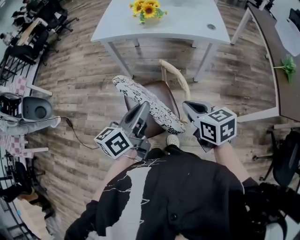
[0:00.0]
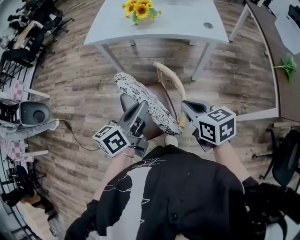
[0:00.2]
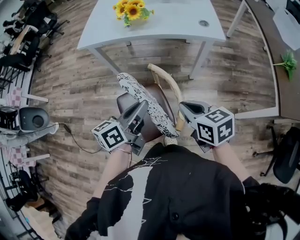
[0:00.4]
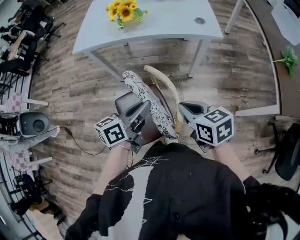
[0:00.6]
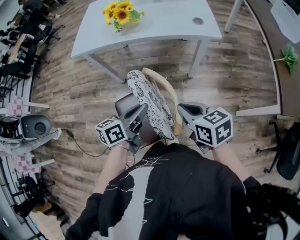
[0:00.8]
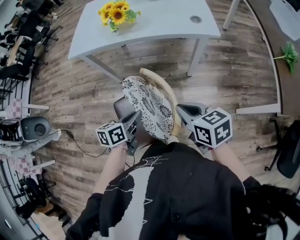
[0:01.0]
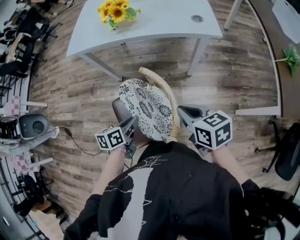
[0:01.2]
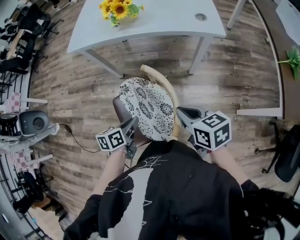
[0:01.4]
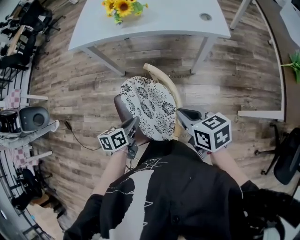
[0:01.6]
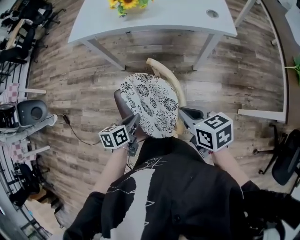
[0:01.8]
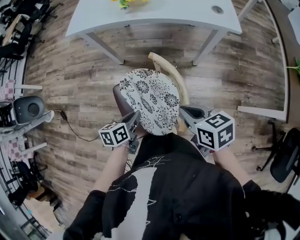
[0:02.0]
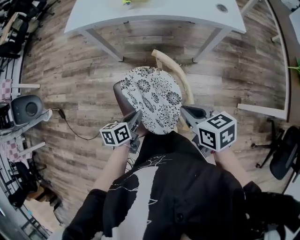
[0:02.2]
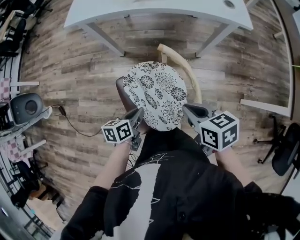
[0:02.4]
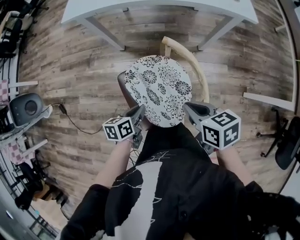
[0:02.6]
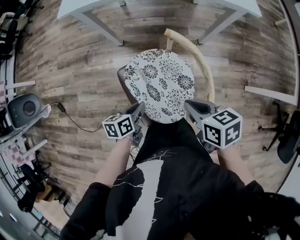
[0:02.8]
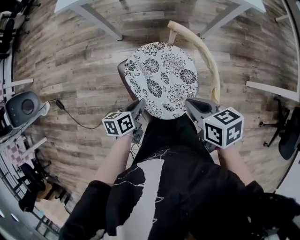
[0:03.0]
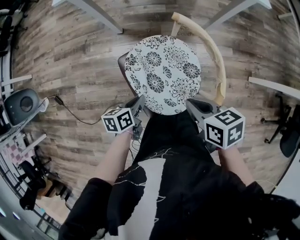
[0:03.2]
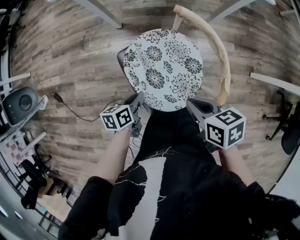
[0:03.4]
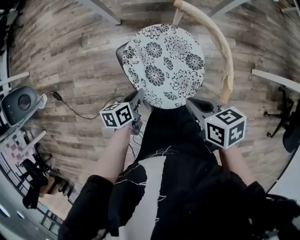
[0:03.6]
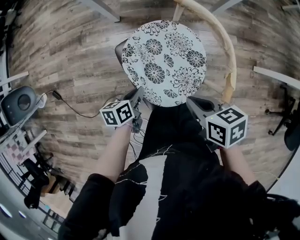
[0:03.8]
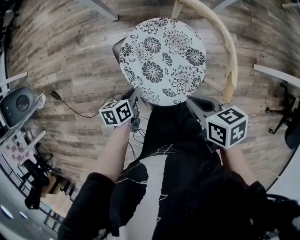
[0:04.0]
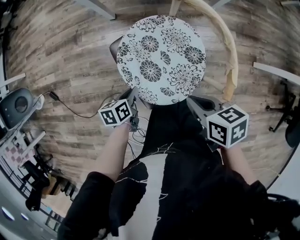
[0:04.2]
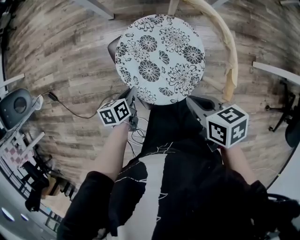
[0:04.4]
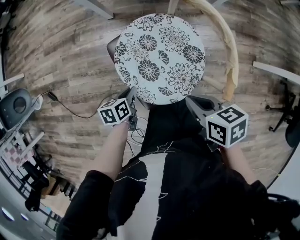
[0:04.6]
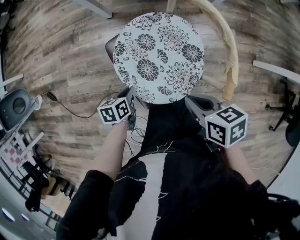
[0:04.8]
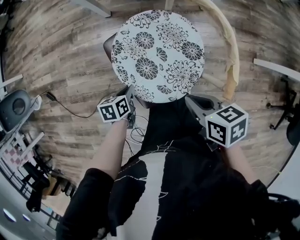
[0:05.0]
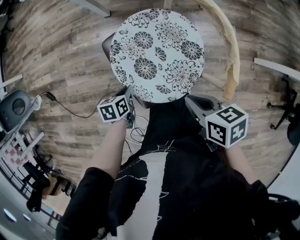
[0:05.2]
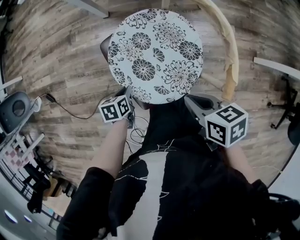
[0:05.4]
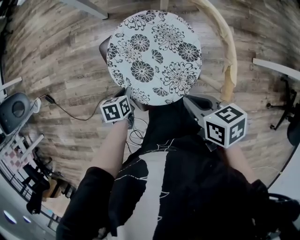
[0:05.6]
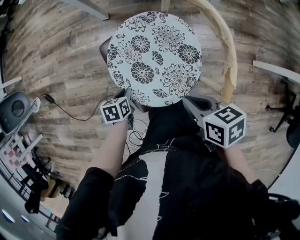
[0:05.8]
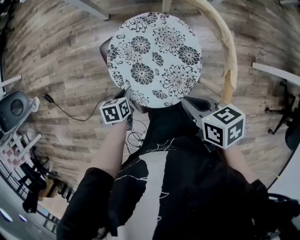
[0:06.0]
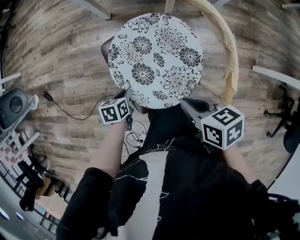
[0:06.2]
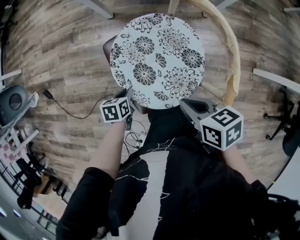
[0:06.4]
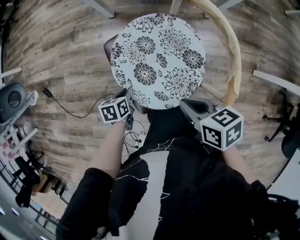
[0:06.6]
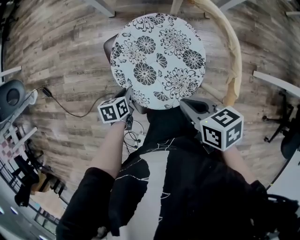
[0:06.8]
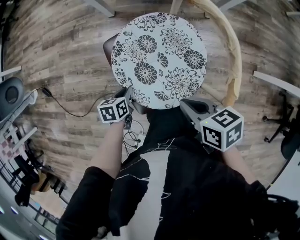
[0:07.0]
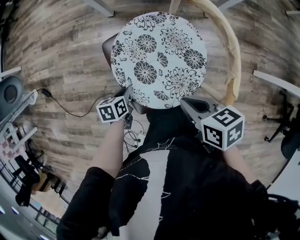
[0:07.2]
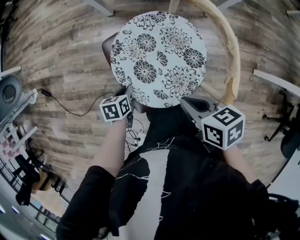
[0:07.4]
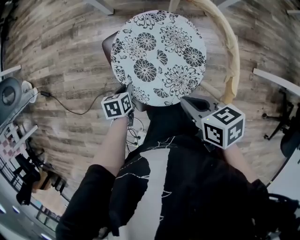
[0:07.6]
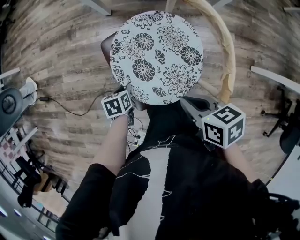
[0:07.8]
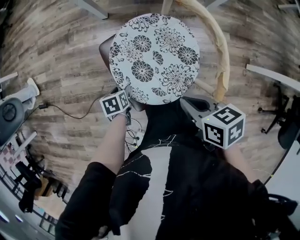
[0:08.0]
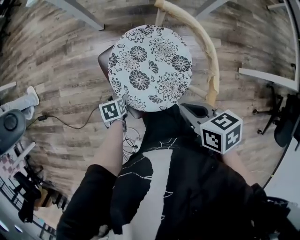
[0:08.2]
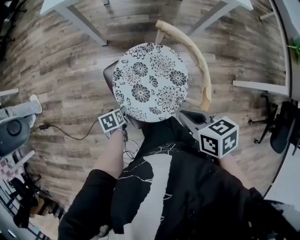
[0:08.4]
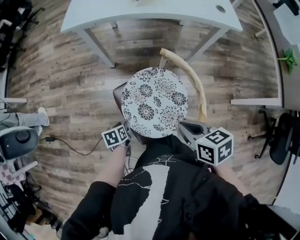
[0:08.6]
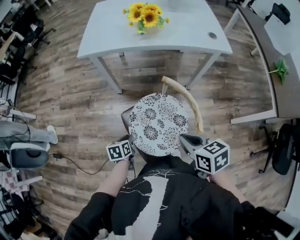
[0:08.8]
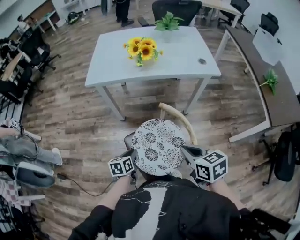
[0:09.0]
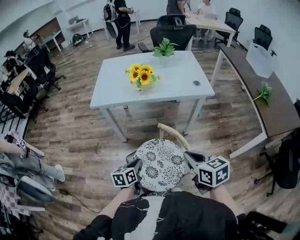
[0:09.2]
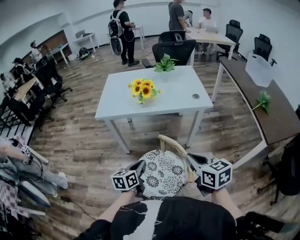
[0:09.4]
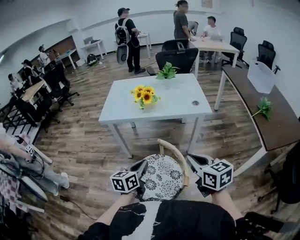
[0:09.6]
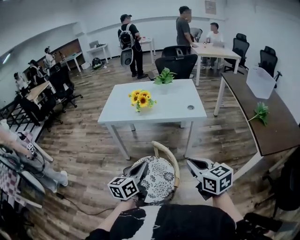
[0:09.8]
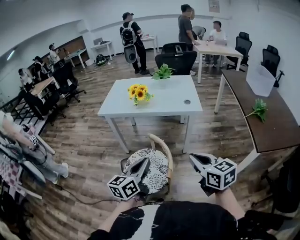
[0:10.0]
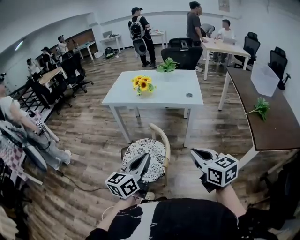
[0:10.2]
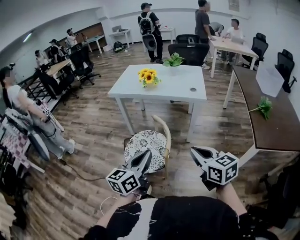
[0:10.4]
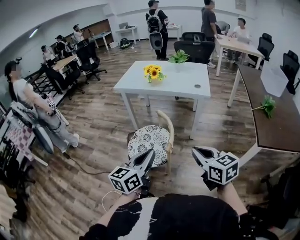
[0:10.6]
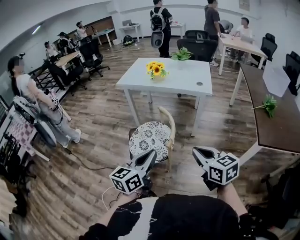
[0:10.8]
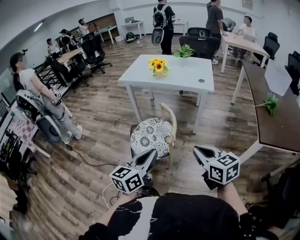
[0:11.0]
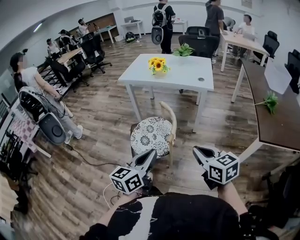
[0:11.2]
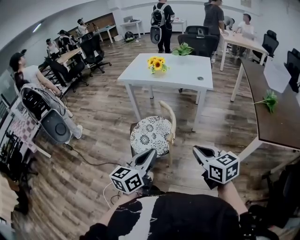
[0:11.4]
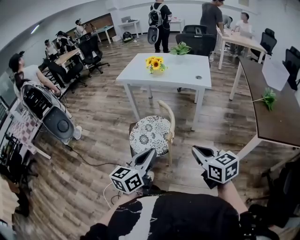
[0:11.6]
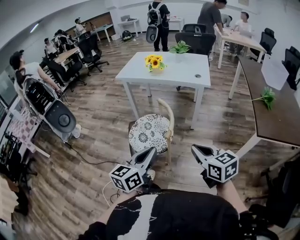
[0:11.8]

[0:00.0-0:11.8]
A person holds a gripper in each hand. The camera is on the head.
0:00.0 to 0:01.4: The left gripper is displaced downward by some 20 cm, and rotates approximately 30 degrees, while the right gripper is displaced forward, downward and to the right by approximately 10 cm.
0:01.4 to 0:03.0: The left gripper heads downward and to the left, covering about 15 cm; the right gripper shifts about 15 cm to the left and downward.
0:03.0 to 0:04.4: The right gripper shifts approximately 10 cm downward and backward. Meanwhile the left gripper heads downward, covering some 10 cm.
0:04.4 to 0:06.0: The left gripper moves downward, approximately 5 cm.
0:06.0 to 0:07.4: The grippers move only a little.
0:07.4 to 0:08.8: The grippers both shift upward by some 20 cm. The left gripper opens, then closes once more.
0:08.8 to 0:10.4: The left gripper travels upward, to the right and backward by about 50 cm, and tips its fingers upward by approximately 50 degrees; the right gripper travels to the right, upward and backward by approximately 35 cm, and changes its angle by roughly 30 degrees.
0:10.4 to 0:11.8: The grippers both shift backward by roughly 10 cm.

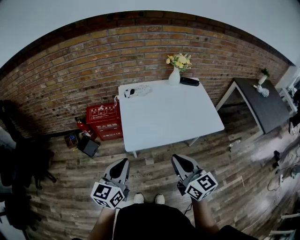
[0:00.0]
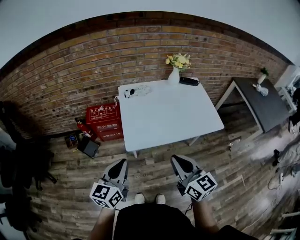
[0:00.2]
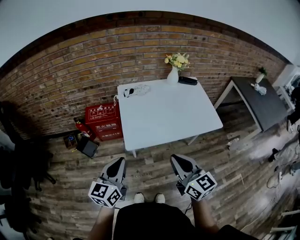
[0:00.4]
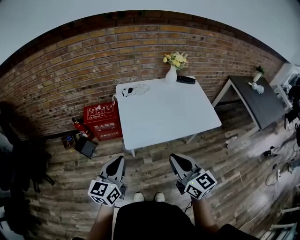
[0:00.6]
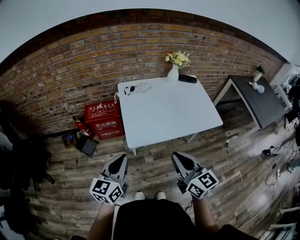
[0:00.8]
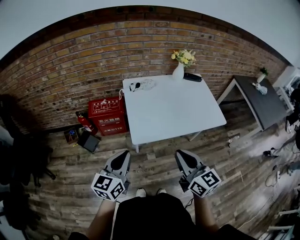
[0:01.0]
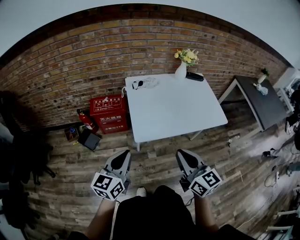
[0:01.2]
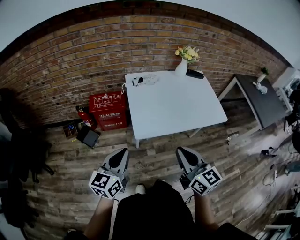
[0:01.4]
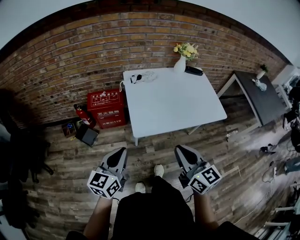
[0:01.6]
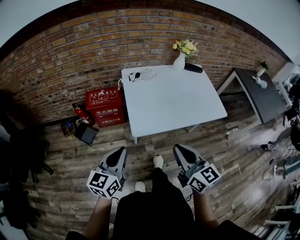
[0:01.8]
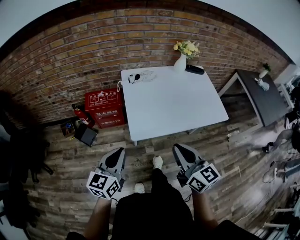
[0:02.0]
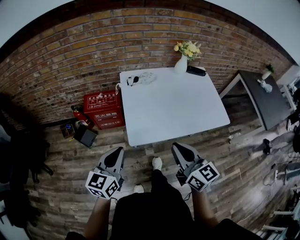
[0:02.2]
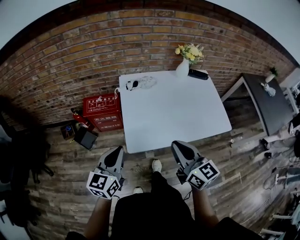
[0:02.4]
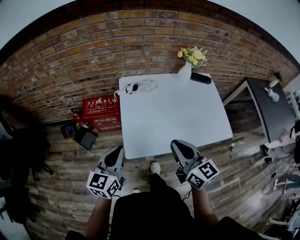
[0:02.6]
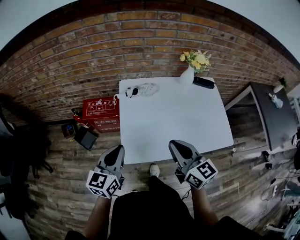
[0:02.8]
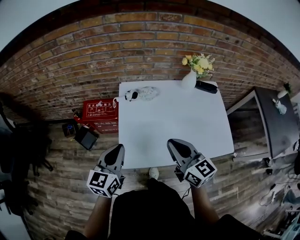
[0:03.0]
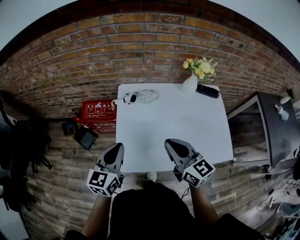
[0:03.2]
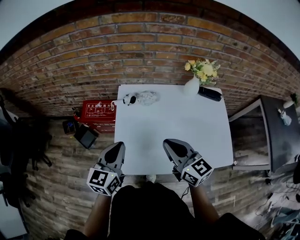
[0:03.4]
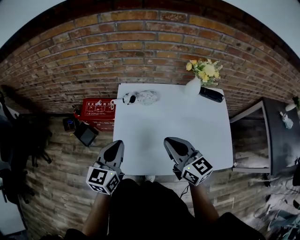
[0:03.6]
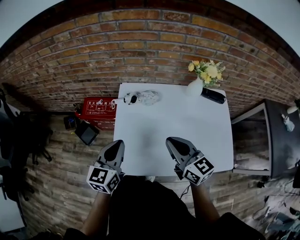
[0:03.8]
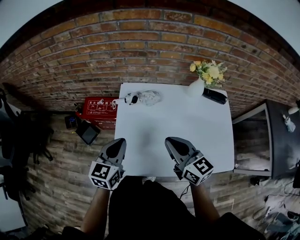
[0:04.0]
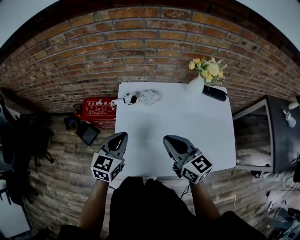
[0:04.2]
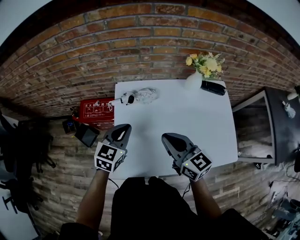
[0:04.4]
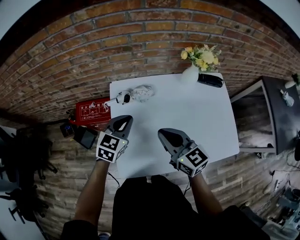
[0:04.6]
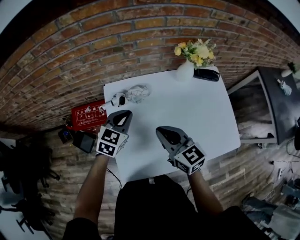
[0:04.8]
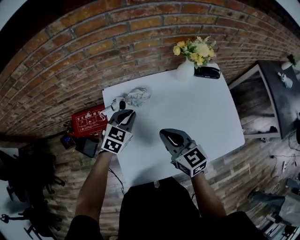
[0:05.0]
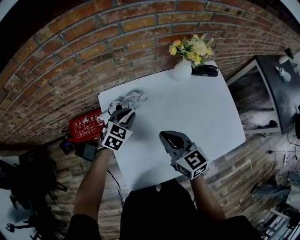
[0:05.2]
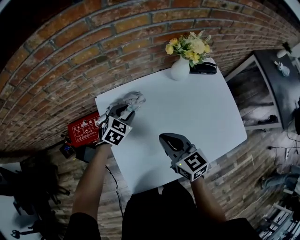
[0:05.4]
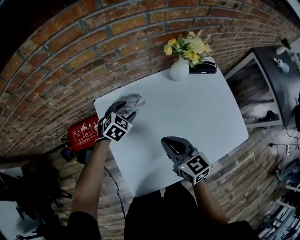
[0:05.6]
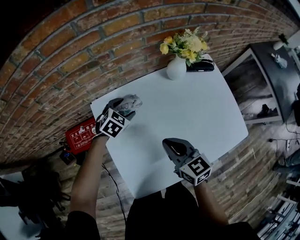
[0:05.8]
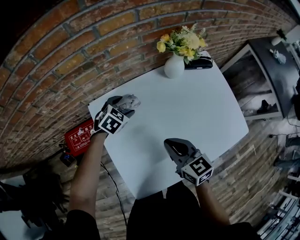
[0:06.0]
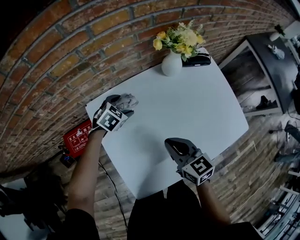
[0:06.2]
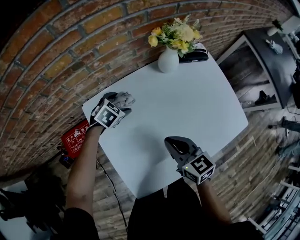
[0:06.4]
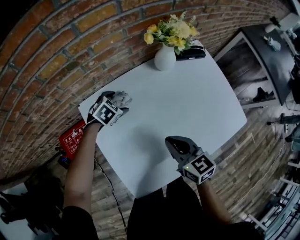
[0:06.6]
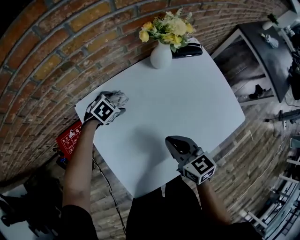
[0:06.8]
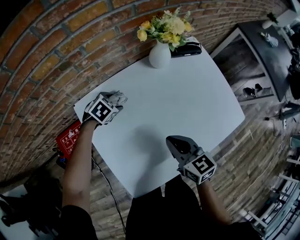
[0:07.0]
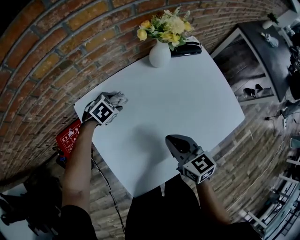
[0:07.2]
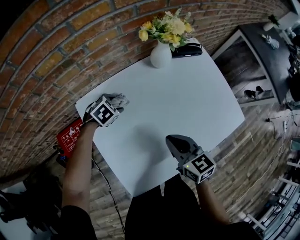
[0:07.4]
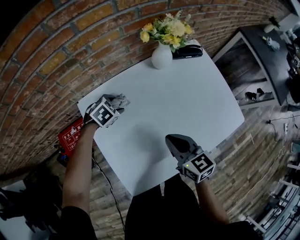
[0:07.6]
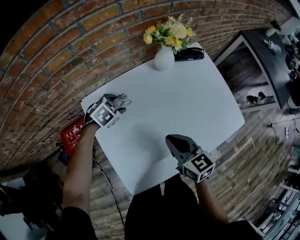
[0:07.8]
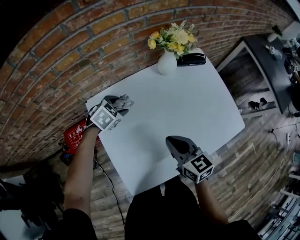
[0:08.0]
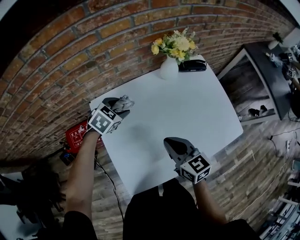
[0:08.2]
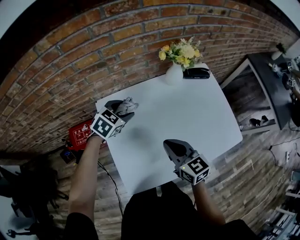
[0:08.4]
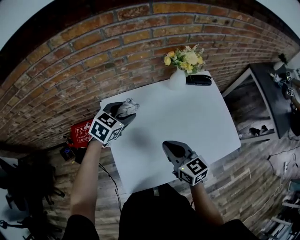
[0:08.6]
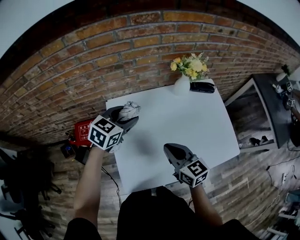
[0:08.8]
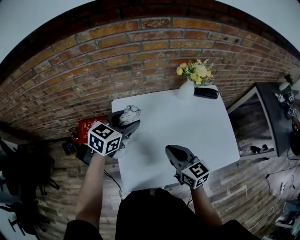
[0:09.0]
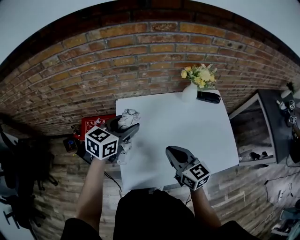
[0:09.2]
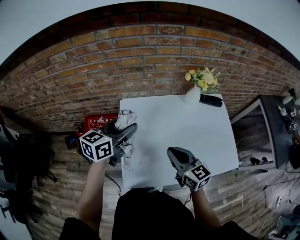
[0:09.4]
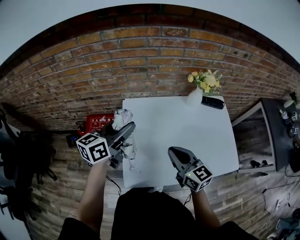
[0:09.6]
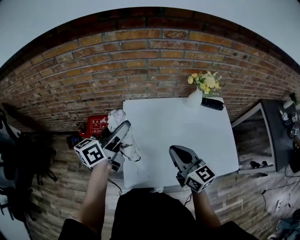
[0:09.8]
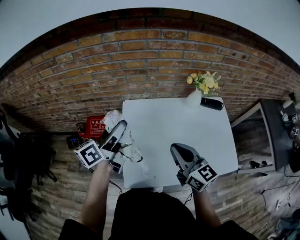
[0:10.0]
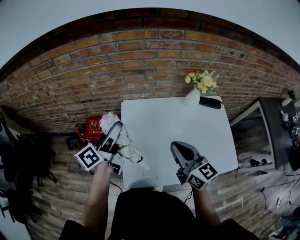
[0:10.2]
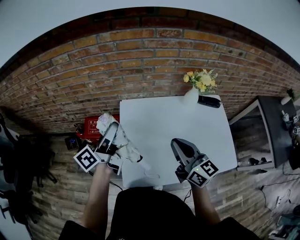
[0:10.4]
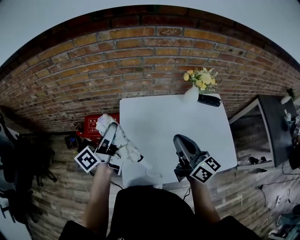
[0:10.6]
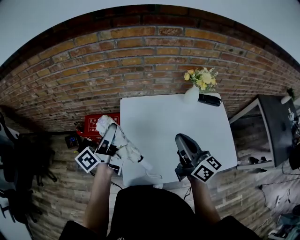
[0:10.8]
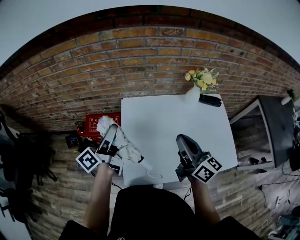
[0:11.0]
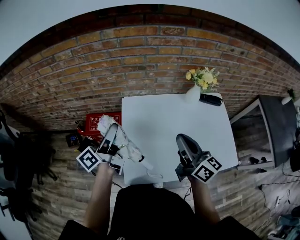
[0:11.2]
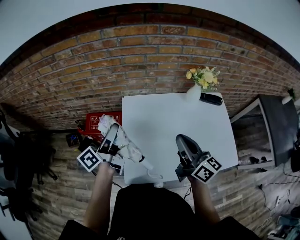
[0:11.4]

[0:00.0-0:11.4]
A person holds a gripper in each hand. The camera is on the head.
0:00.0 to 0:01.4: The grippers both shift to the left by some 5 cm.
0:01.4 to 0:02.8: Both grippers move forward, roughly 20 cm.
0:02.8 to 0:04.2: The left gripper is displaced forward and to the right by roughly 15 cm. The right gripper is displaced forward by roughly 15 cm.
0:04.2 to 0:05.6: The left gripper shifts about 30 cm forward and downward, rotates roughly 50 degrees, and opens. The right gripper moves downward and forward, about 10 cm, and swivels some 20 degrees.
0:05.6 to 0:07.2: The left gripper is displaced downward by approximately 10 cm, swivels some 20 degrees, and opens and closes again, while the right gripper shifts approximately 5 cm to the right.
0:07.2 to 0:08.6: The left gripper is displaced upward by roughly 20 cm, and changes its angle by about 30 degrees. Meanwhile the right gripper shifts roughly 5 cm upward.
0:08.6 to 0:10.0: The right gripper travels upward by some 10 cm. The left gripper goes approximately 20 cm upward, to the left and backward, and points its fingers about 40 degrees further upward.
0:10.0 to 0:11.4: The right gripper rotates about 20 degrees.
